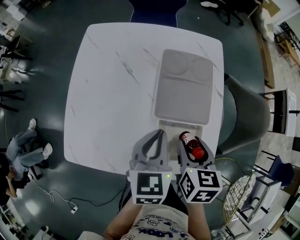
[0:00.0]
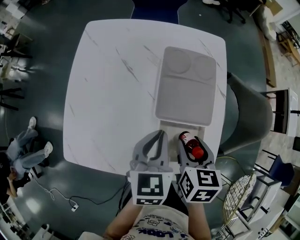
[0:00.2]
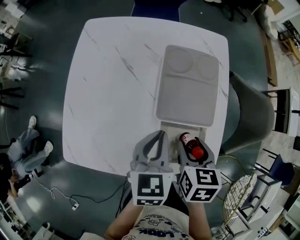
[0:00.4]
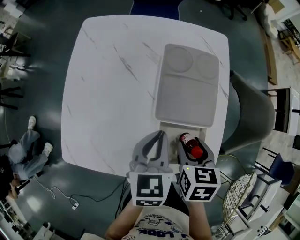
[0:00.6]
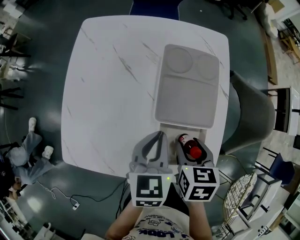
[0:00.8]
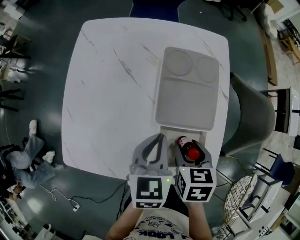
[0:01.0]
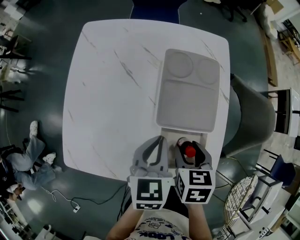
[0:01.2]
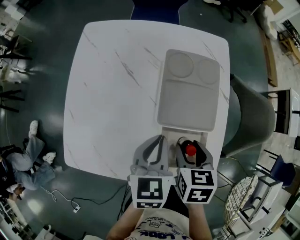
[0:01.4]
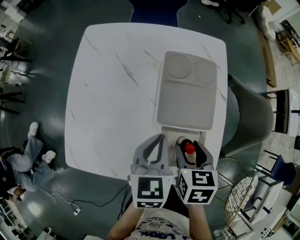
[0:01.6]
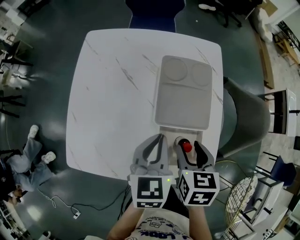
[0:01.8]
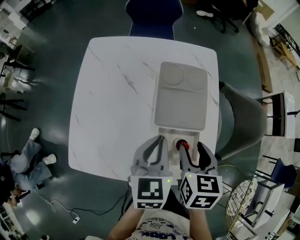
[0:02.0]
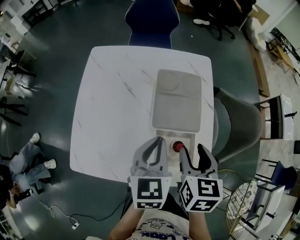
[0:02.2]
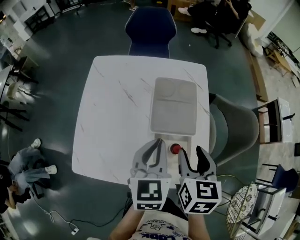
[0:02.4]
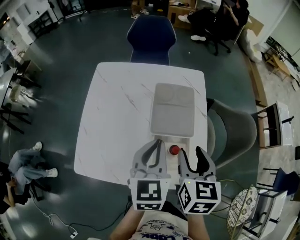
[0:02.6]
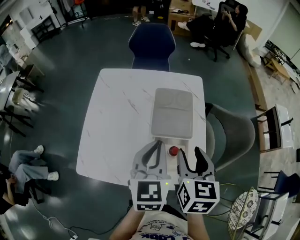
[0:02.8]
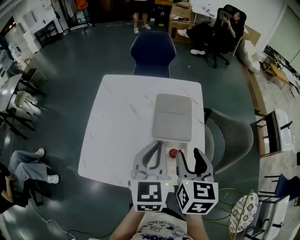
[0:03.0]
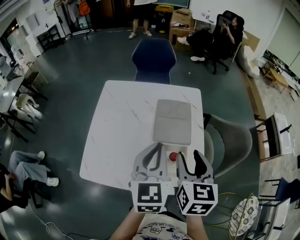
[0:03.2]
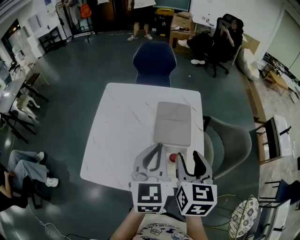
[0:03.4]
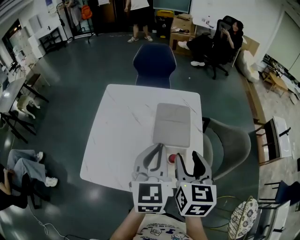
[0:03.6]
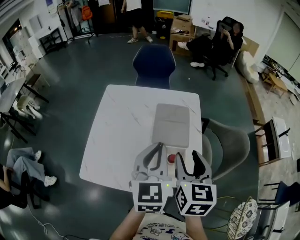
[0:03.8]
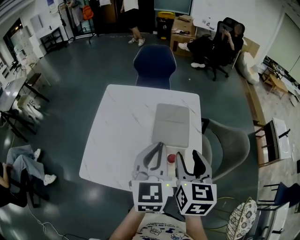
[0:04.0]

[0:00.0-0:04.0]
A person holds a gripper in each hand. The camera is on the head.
0:00.0 to 0:01.4: The grippers stay close to where they were, moving slightly.
0:01.4 to 0:02.6: Both grippers move upward, roughly 15 cm. The right gripper changes its angle by about 20 degrees.
0:02.6 to 0:04.0: The grippers both shift upward by some 10 cm.

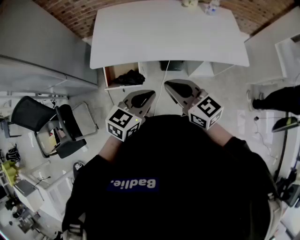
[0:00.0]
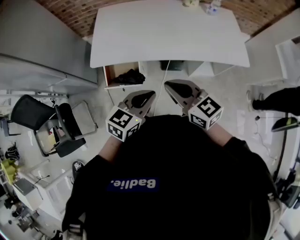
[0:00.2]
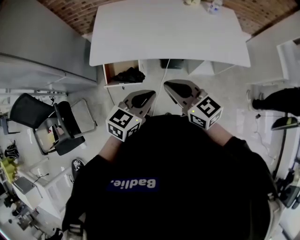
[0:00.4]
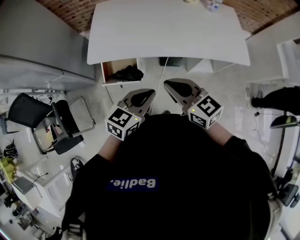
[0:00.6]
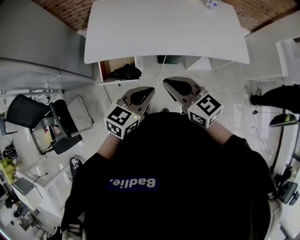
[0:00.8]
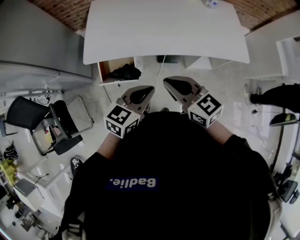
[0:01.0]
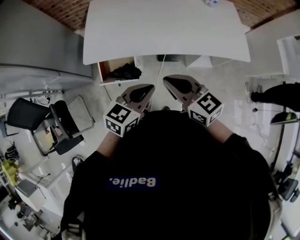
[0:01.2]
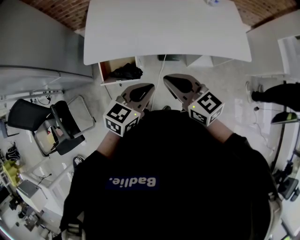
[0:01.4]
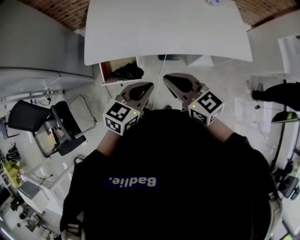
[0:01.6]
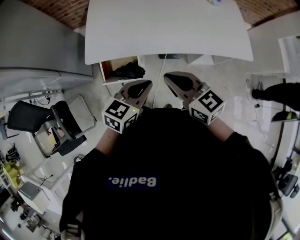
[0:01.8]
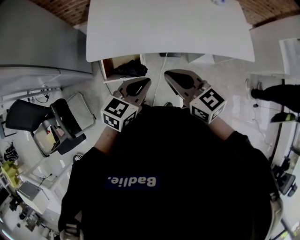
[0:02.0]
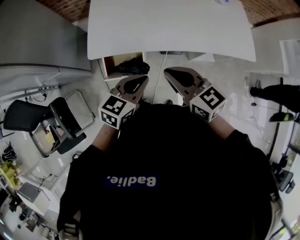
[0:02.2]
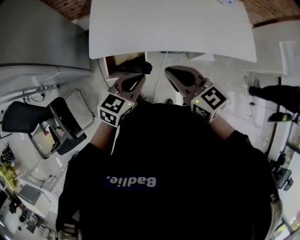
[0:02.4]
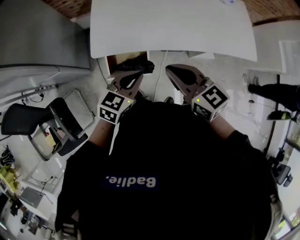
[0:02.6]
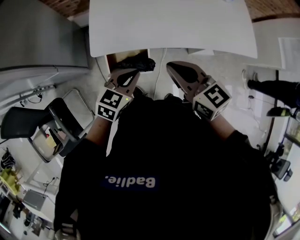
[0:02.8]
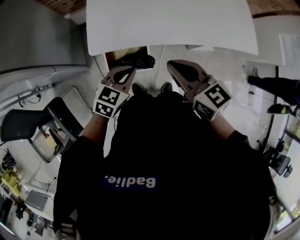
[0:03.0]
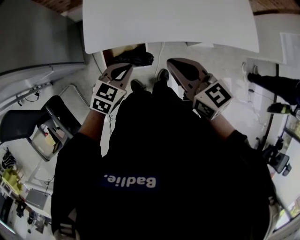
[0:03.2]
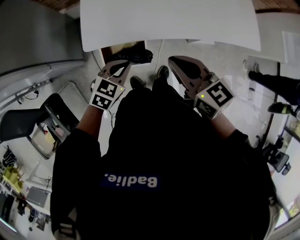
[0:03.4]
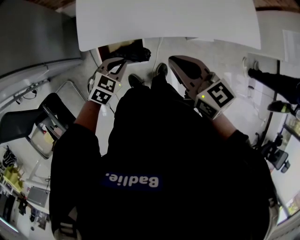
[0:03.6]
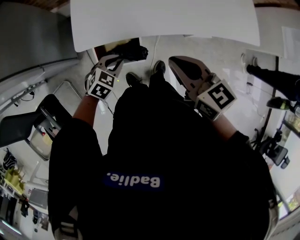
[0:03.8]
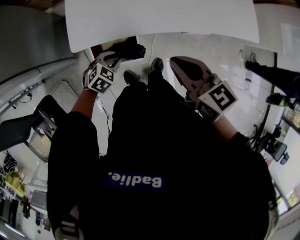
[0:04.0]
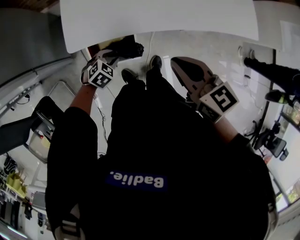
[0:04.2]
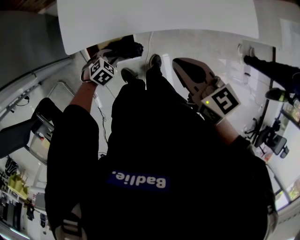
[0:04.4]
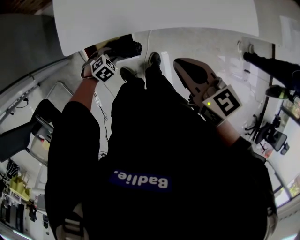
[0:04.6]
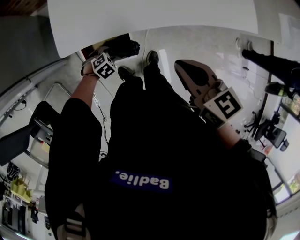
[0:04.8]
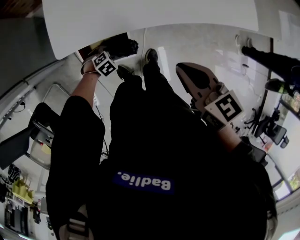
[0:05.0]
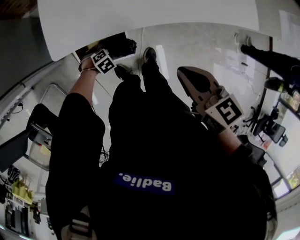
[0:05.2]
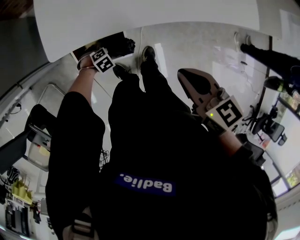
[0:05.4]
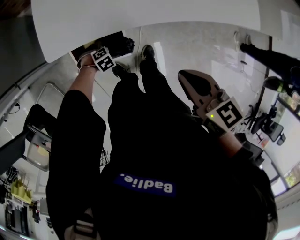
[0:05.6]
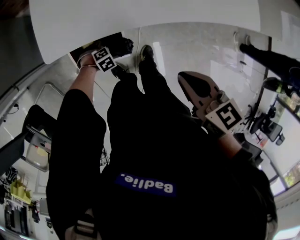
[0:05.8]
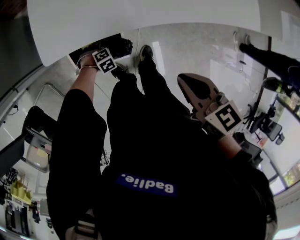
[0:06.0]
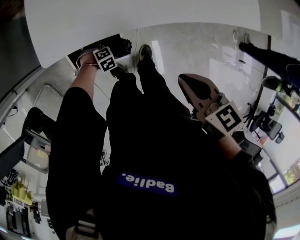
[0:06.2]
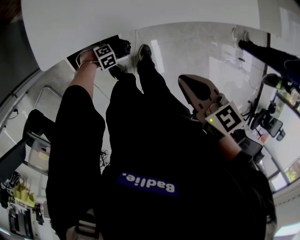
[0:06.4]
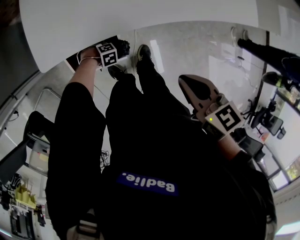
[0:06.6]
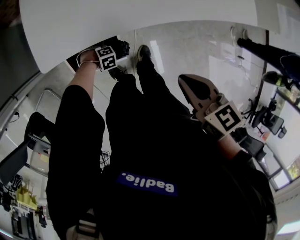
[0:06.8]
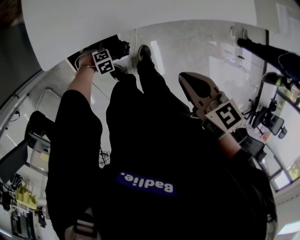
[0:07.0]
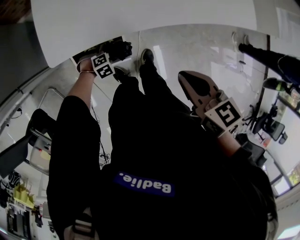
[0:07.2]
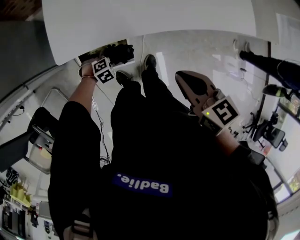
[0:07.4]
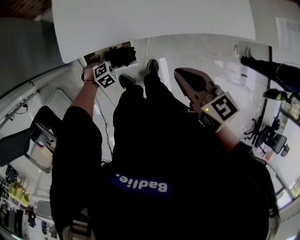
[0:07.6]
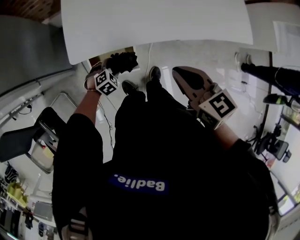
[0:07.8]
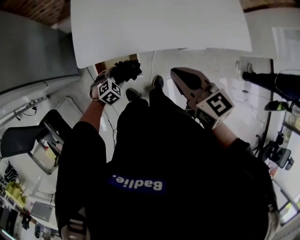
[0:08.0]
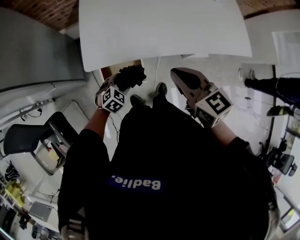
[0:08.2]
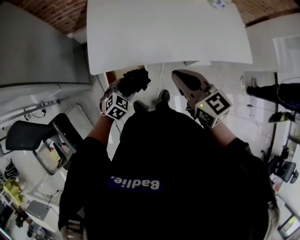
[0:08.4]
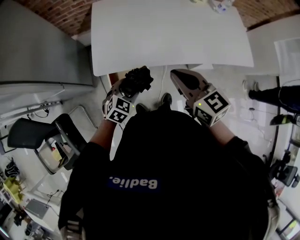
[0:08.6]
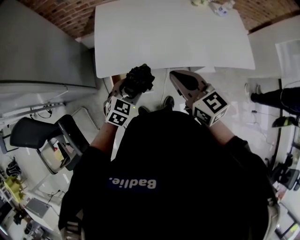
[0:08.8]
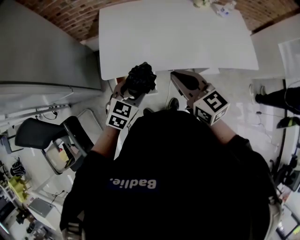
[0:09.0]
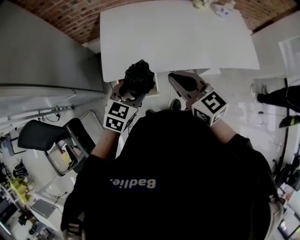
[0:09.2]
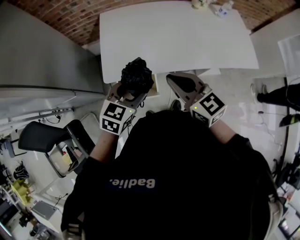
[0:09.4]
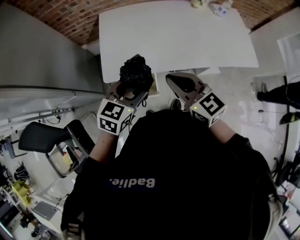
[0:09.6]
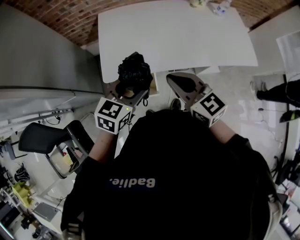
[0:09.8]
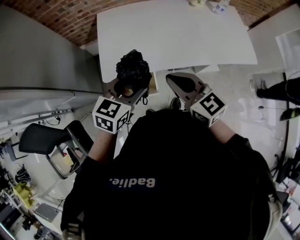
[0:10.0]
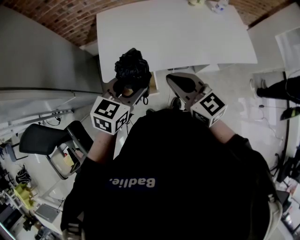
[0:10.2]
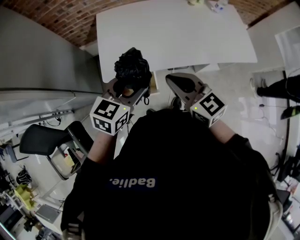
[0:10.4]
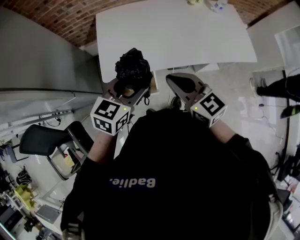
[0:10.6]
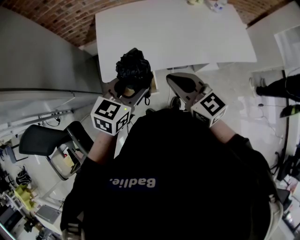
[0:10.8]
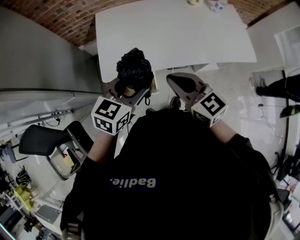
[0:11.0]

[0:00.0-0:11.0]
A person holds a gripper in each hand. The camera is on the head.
0:00.0 to 0:01.6: The left gripper moves about 5 cm.
0:01.6 to 0:03.2: The right gripper heads to the left and forward, covering roughly 15 cm. Meanwhile the left gripper travels to the left and downward by roughly 20 cm.
0:03.2 to 0:04.8: The right gripper moves to the right, approximately 5 cm. The left gripper heads downward, covering some 30 cm, tips its fingers downward by about 40 degrees, and opens up.
0:04.8 to 0:06.2: The left gripper heads downward, covering some 10 cm. Meanwhile the right gripper moves downward, some 5 cm.
0:06.2 to 0:07.8: The right gripper heads upward, covering some 10 cm; the left gripper heads upward, covering approximately 15 cm, and rotates about 20 degrees.
0:07.8 to 0:09.4: The right gripper travels upward by approximately 10 cm, and changes its angle by roughly 20 degrees. The left gripper is displaced upward by some 35 cm, and points its fingers about 30 degrees further upward.
0:09.4 to 0:11.0: The grippers stay close to where they were, moving slightly.

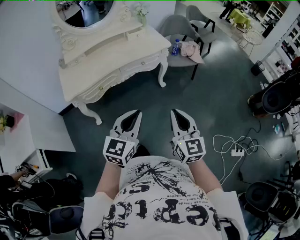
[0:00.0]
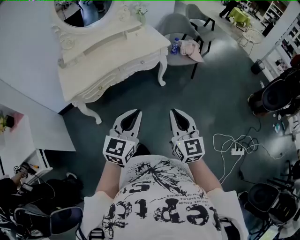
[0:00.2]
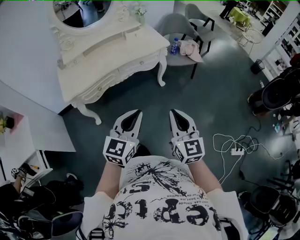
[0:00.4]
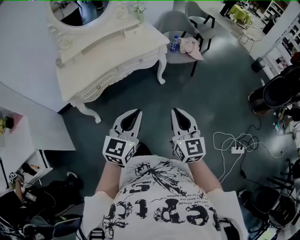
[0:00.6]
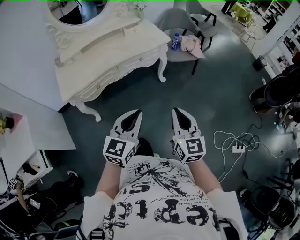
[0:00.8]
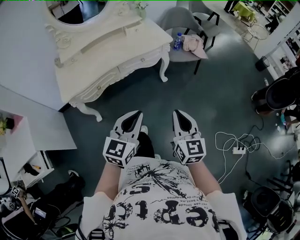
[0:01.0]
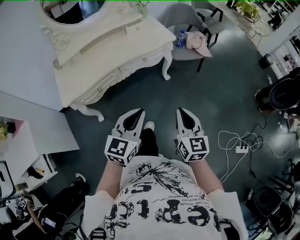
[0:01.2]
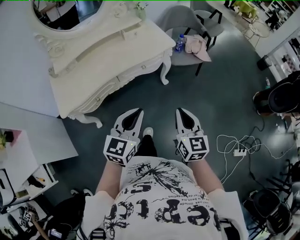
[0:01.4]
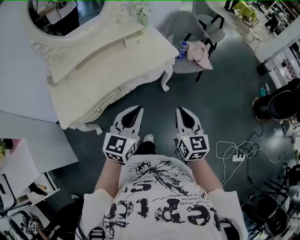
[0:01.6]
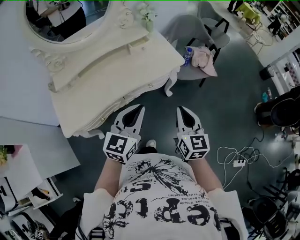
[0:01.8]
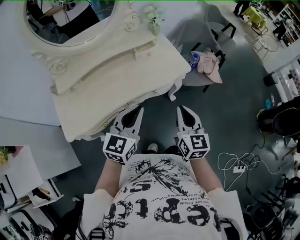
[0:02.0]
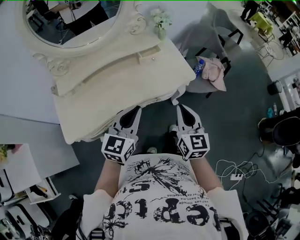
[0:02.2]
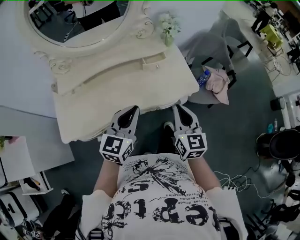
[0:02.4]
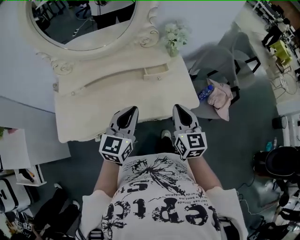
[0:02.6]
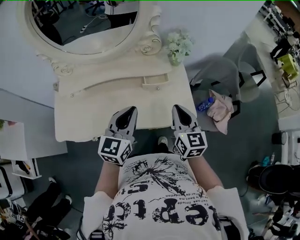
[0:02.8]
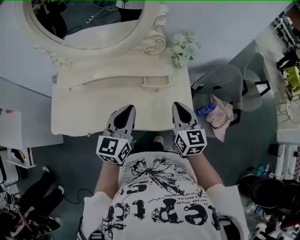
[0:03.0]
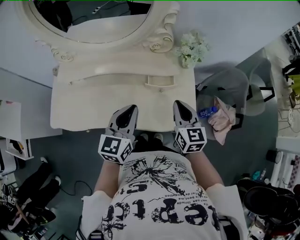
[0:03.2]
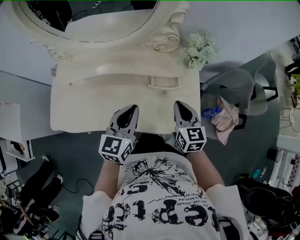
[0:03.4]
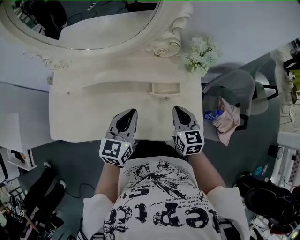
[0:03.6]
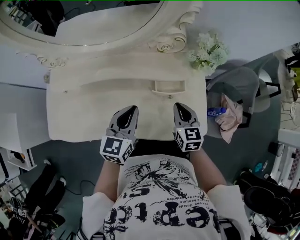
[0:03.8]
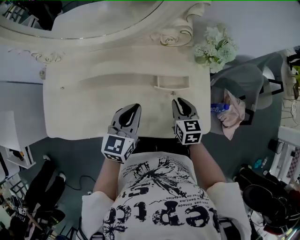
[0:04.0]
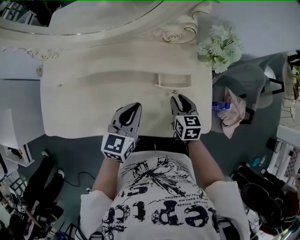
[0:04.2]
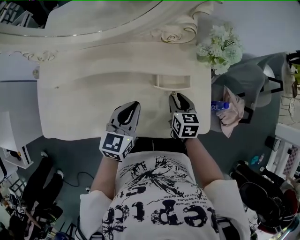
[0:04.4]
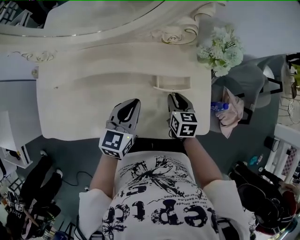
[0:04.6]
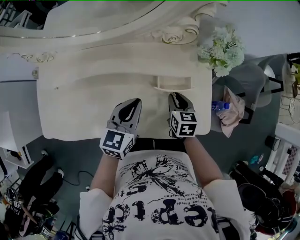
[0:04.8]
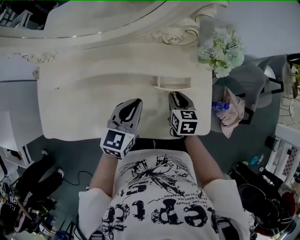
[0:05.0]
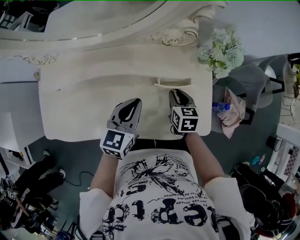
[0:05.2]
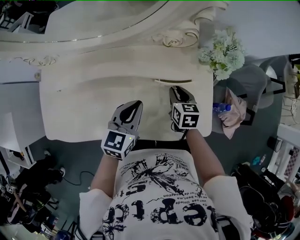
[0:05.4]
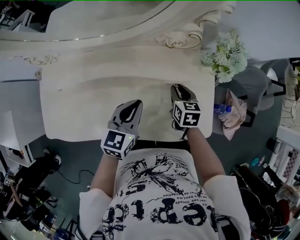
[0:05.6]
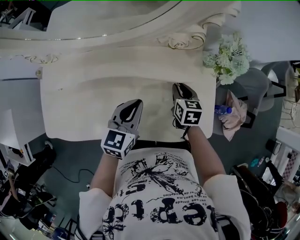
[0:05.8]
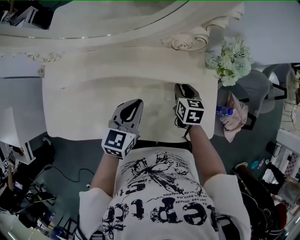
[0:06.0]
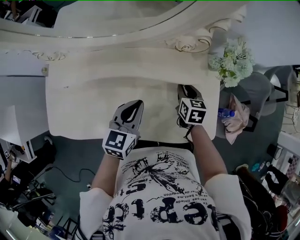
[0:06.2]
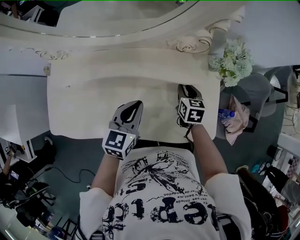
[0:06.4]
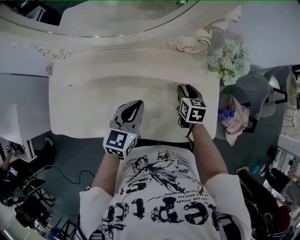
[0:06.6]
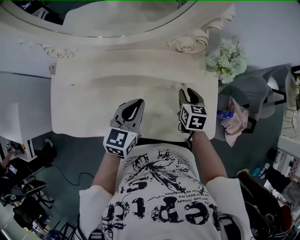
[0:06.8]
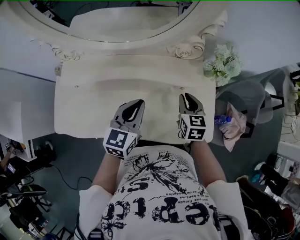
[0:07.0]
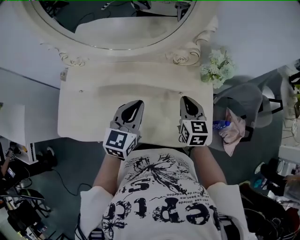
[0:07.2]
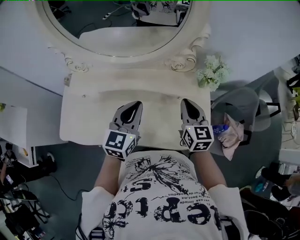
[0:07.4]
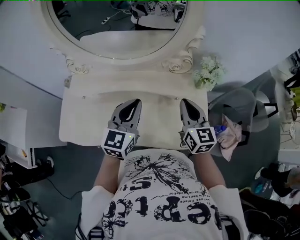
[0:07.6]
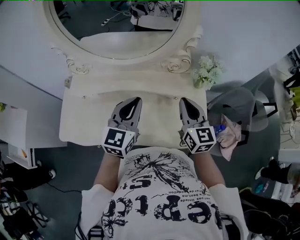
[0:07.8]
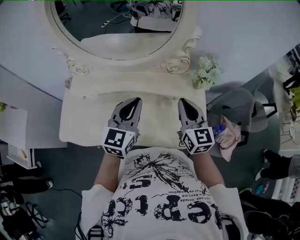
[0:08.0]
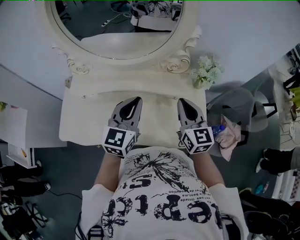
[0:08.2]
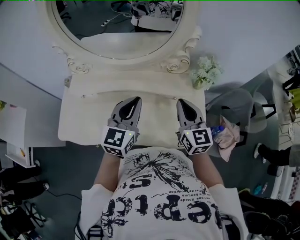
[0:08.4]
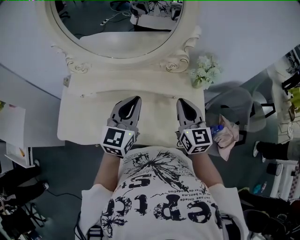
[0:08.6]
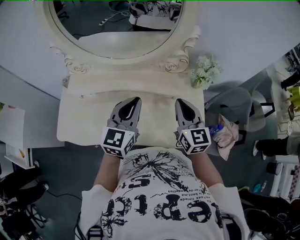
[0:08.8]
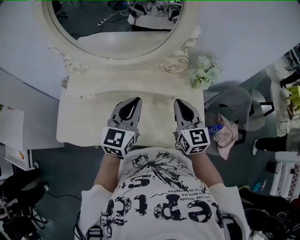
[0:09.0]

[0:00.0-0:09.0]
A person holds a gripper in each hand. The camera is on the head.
0:00.0 to 0:01.6: Both grippers travel together forward, about 25 cm.
0:01.6 to 0:03.0: The right gripper moves approximately 50 cm, and changes its angle by approximately 30 degrees, while the left gripper ends up approximately 40 cm from where it was, and changes its angle by some 40 degrees.
0:03.0 to 0:04.4: The grippers both shift downward and forward by roughly 20 cm. The right gripper turns by about 30 degrees, and opens up.
0:04.4 to 0:06.0: The right gripper is displaced forward by roughly 10 cm.
0:06.0 to 0:07.6: The grippers both shift upward by approximately 20 cm. The right gripper angles its fingers upward, by approximately 30 degrees, and closes up, while the left gripper changes its angle by some 20 degrees.
0:07.6 to 0:09.0: The grippers make only small movements.
